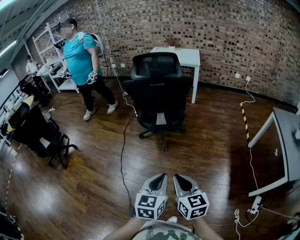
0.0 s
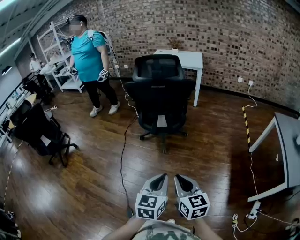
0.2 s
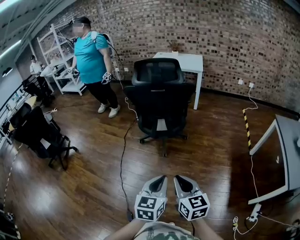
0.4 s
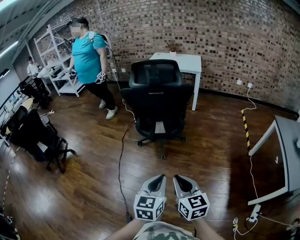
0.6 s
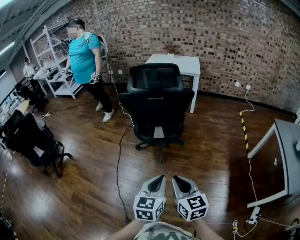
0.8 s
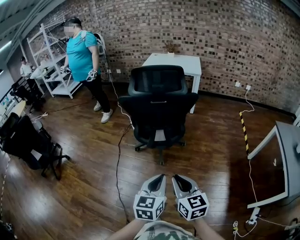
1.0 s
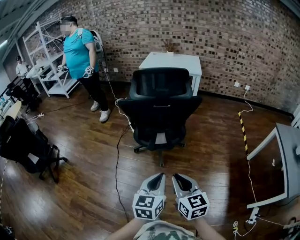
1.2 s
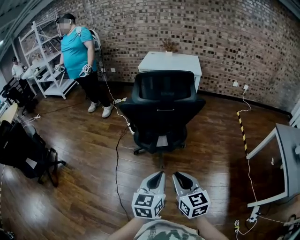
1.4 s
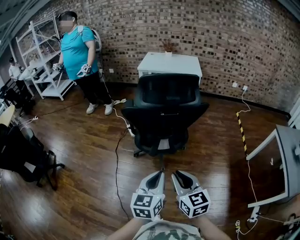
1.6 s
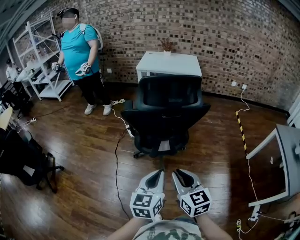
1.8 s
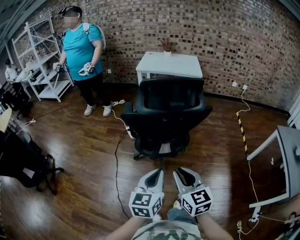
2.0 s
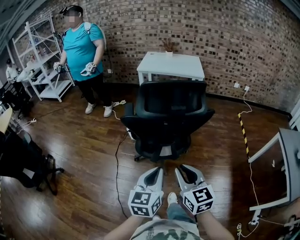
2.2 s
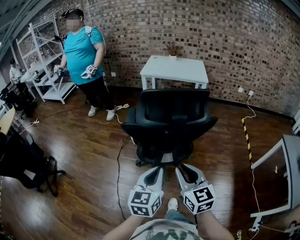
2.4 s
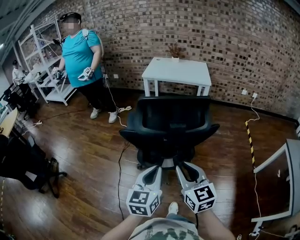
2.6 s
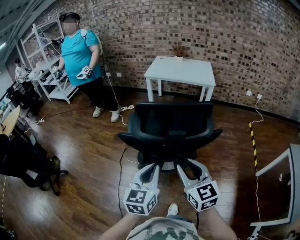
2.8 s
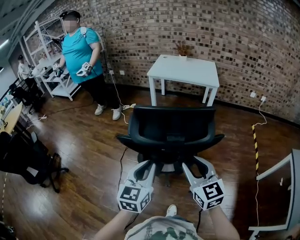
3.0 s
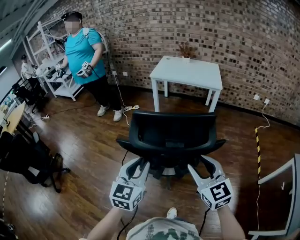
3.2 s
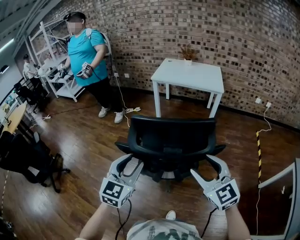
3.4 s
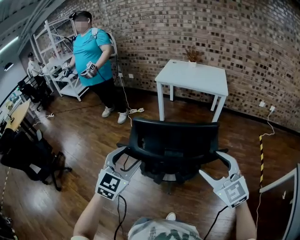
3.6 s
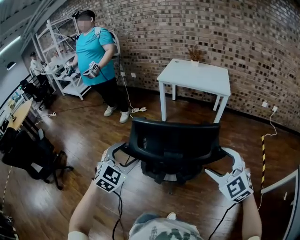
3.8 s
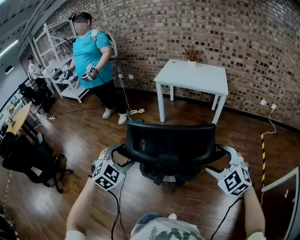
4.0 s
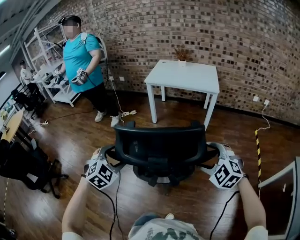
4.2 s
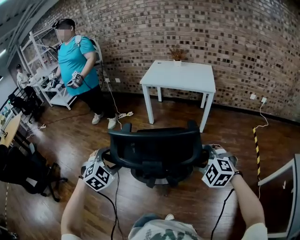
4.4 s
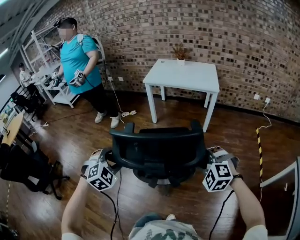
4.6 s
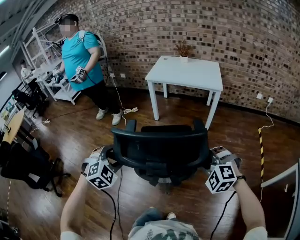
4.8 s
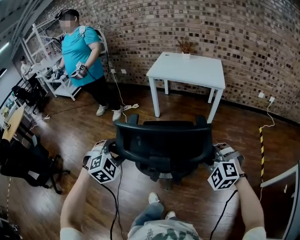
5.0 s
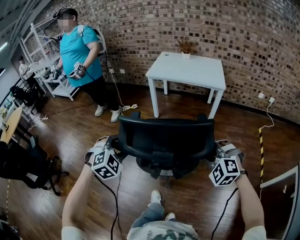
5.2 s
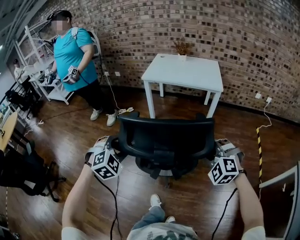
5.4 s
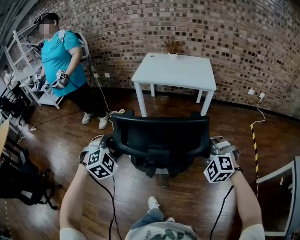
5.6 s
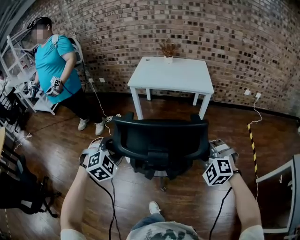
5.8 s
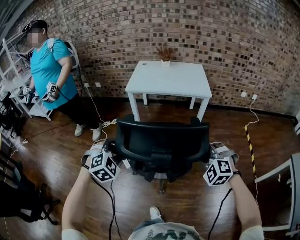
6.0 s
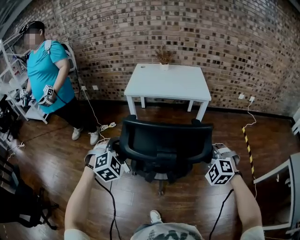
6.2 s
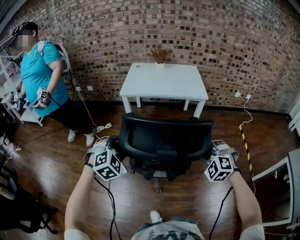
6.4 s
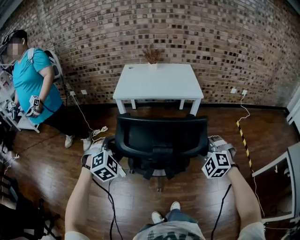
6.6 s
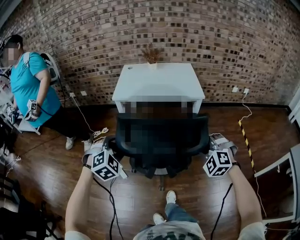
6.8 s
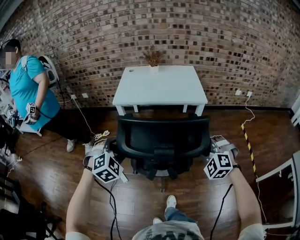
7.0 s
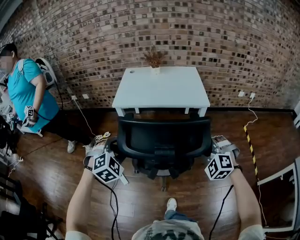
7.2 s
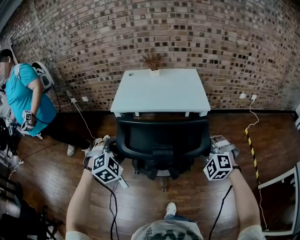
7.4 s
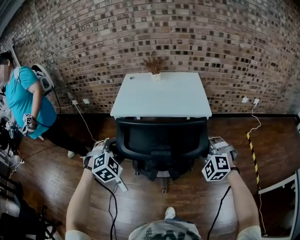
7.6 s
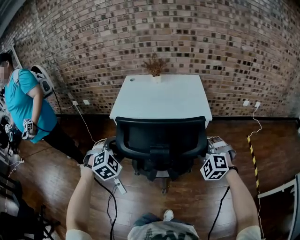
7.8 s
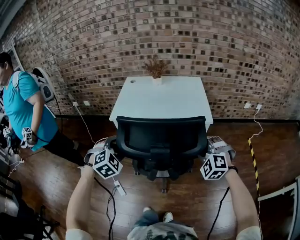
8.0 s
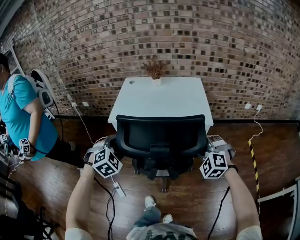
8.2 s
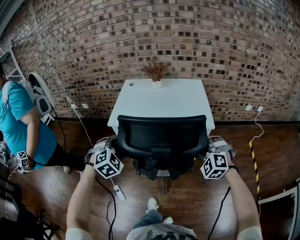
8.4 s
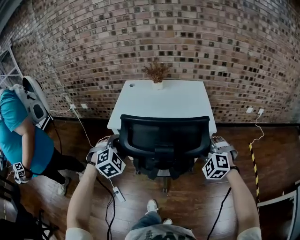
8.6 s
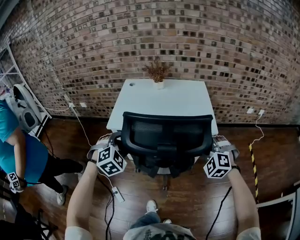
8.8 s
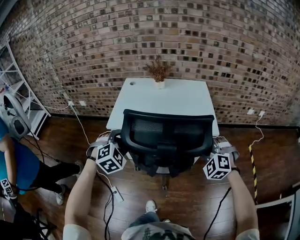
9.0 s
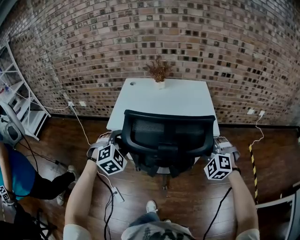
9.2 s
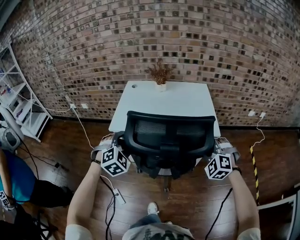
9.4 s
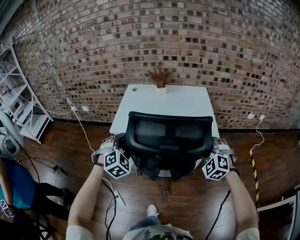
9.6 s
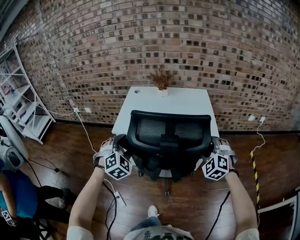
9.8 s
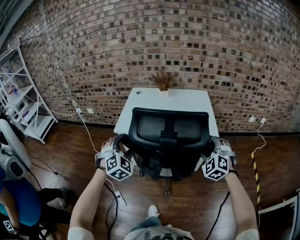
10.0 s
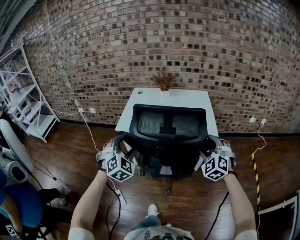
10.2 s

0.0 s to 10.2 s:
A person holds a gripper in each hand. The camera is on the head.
0.0 to 1.4 s: The two grippers go roughly 25 cm forward.
1.4 to 3.0 s: Both grippers travel together forward, roughly 25 cm.
3.0 to 4.4 s: The left gripper is displaced forward and to the left by approximately 15 cm, rotates around the line of its fingers by roughly 50 degrees, clockwise from behind, and opens up. The right gripper travels forward, to the right and downward by about 15 cm, rolls counterclockwise, seen from behind, by some 50 degrees, and opens up.
4.4 to 5.8 s: Both grippers travel together forward, roughly 20 cm. The right gripper closes up.
5.8 to 7.2 s: Both grippers travel together forward, some 20 cm.
7.2 to 8.8 s: The two grippers go roughly 25 cm forward.
8.8 to 10.2 s: The left gripper ends up approximately 5 cm from where it was, while the right gripper changes place by roughly 5 cm, and opens its fingers.

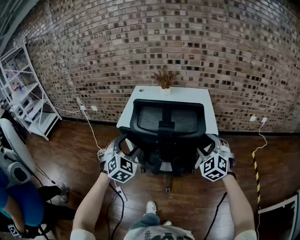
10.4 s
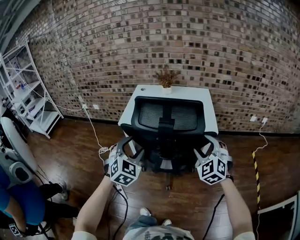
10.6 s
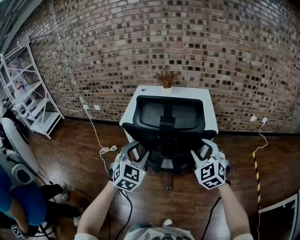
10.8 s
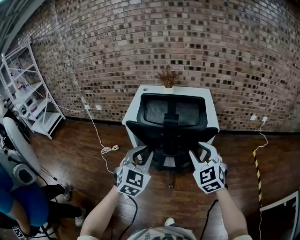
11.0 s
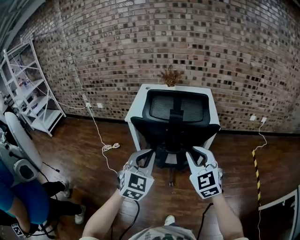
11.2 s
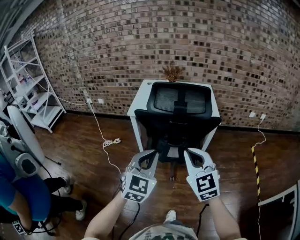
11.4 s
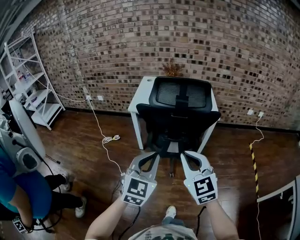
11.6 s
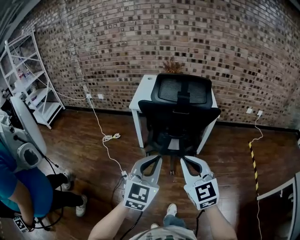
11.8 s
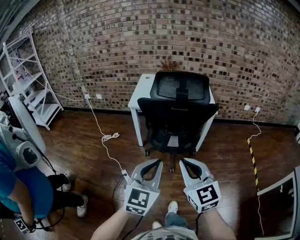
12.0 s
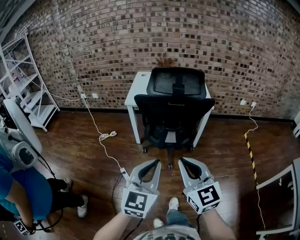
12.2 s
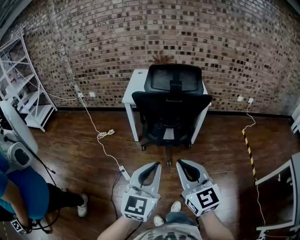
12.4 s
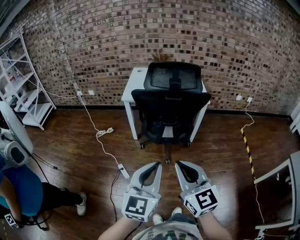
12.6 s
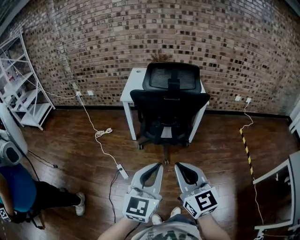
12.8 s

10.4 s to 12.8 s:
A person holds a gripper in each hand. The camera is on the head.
10.4 to 11.6 s: The left gripper is displaced backward by approximately 25 cm, rotates approximately 30 degrees, and closes up, while the right gripper moves backward and to the left, roughly 30 cm, swivels about 40 degrees, and closes.
11.6 to 12.8 s: Both grippers move backward, roughly 15 cm.

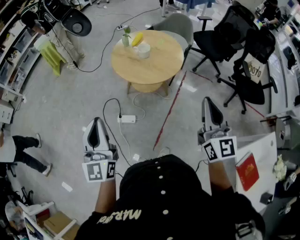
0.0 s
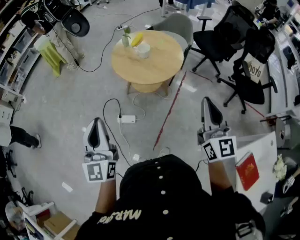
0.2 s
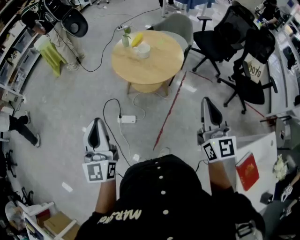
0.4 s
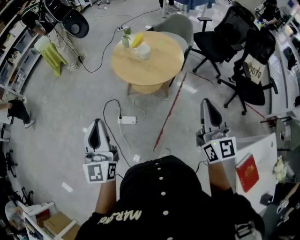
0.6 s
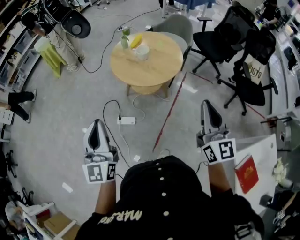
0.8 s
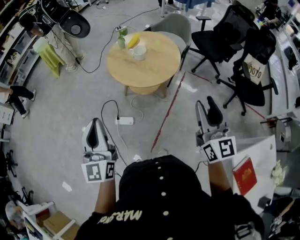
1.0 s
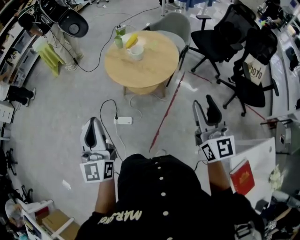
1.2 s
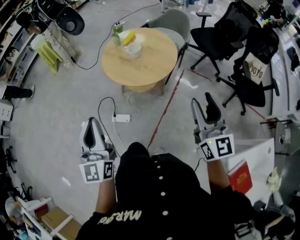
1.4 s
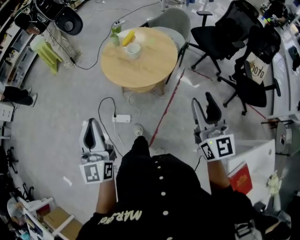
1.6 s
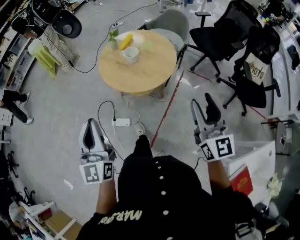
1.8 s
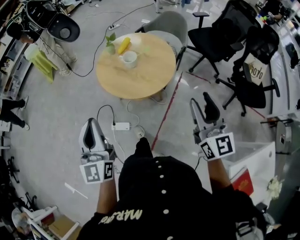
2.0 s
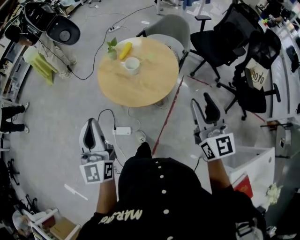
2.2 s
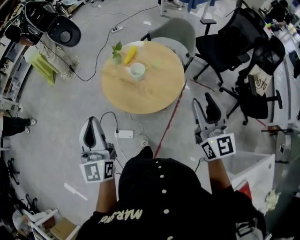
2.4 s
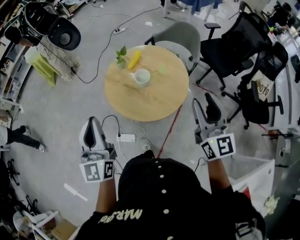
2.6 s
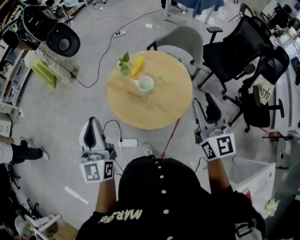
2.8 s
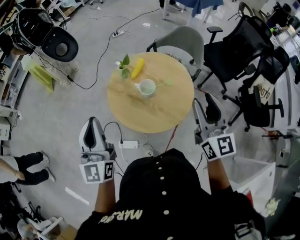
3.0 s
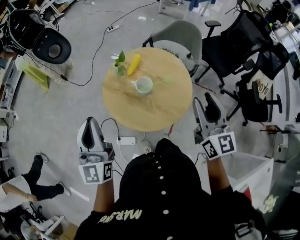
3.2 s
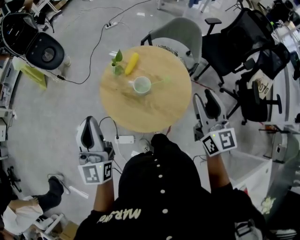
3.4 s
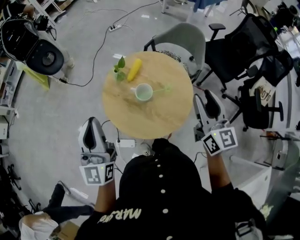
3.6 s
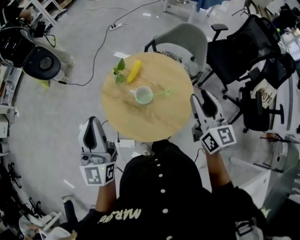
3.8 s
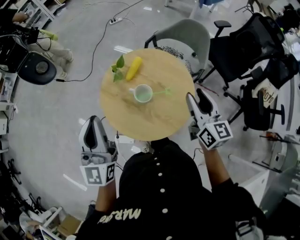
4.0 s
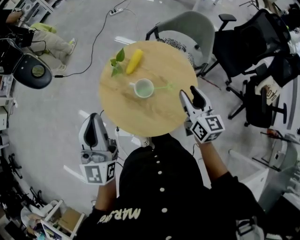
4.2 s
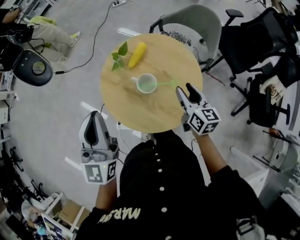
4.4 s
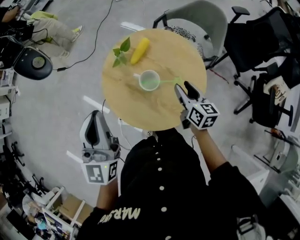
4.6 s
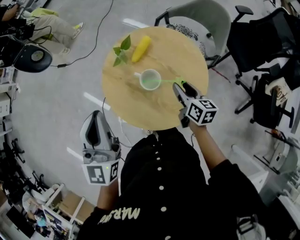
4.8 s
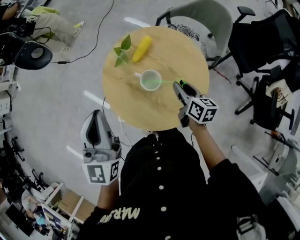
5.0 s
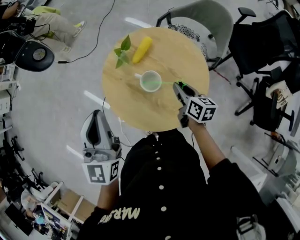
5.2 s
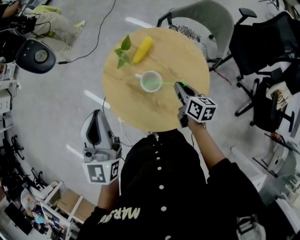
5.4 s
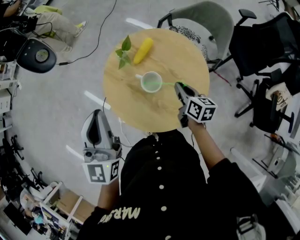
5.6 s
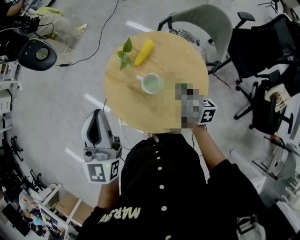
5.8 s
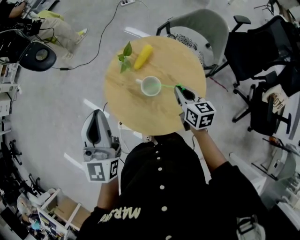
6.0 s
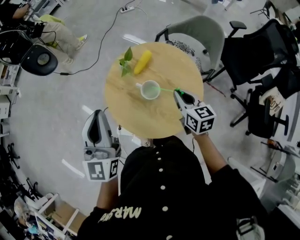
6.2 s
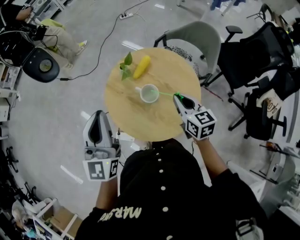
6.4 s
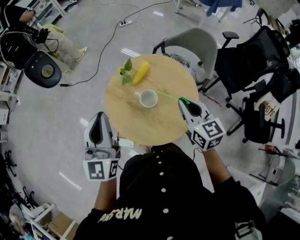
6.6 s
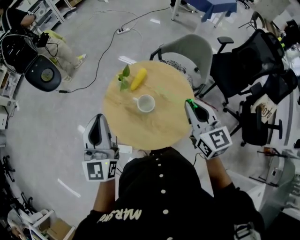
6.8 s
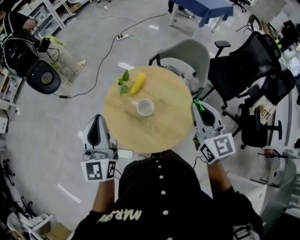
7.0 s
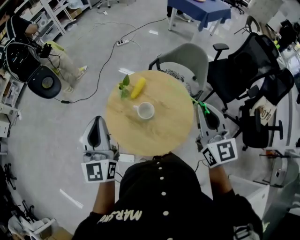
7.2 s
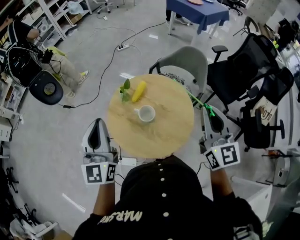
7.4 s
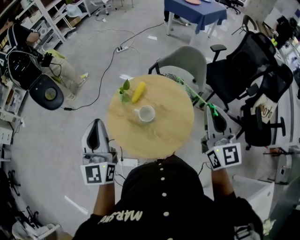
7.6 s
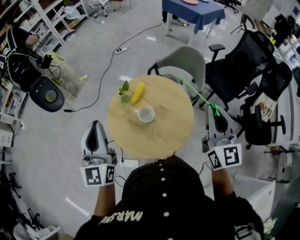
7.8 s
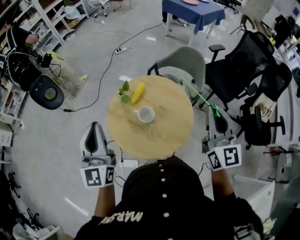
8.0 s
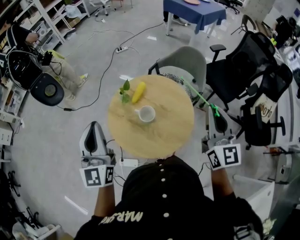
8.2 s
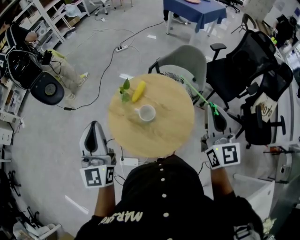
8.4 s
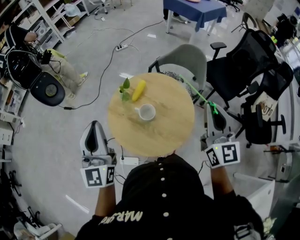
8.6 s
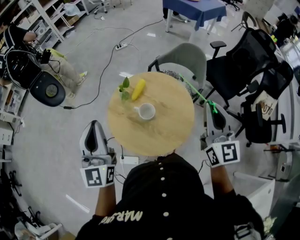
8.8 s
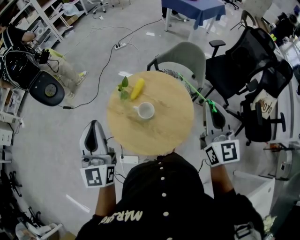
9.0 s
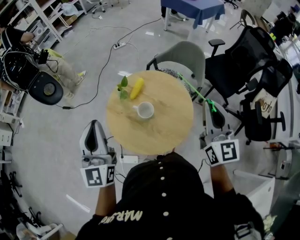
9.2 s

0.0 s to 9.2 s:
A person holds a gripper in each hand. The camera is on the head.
0.0 to 1.6 s: Both grippers move to the right and forward, roughly 10 cm. The right gripper opens its fingers.
1.6 to 3.0 s: Both grippers move forward, approximately 40 cm.
3.0 to 4.6 s: The left gripper goes roughly 15 cm forward and downward. Meanwhile the right gripper shifts some 35 cm downward and forward, and turns by roughly 40 degrees.
4.6 to 6.2 s: The right gripper goes some 5 cm upward, and closes.
6.2 to 7.6 s: The right gripper heads upward and backward, covering about 30 cm, and tilts its fingers some 30 degrees upward. The left gripper shifts roughly 10 cm upward.
7.6 to 9.2 s: The grippers make only small movements.

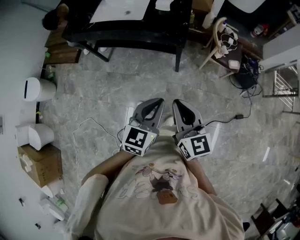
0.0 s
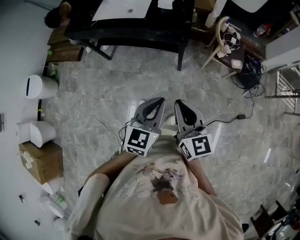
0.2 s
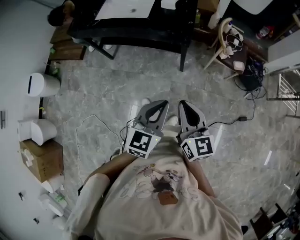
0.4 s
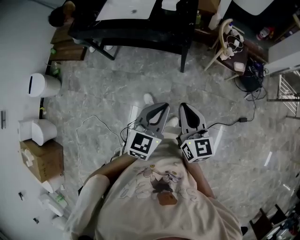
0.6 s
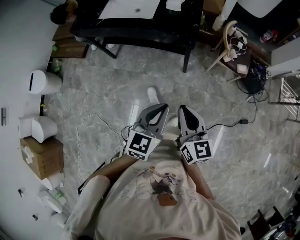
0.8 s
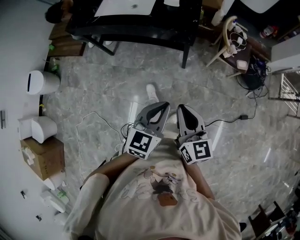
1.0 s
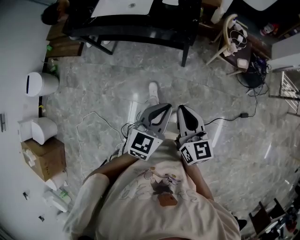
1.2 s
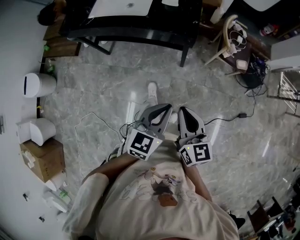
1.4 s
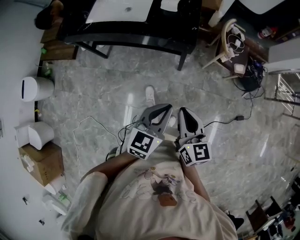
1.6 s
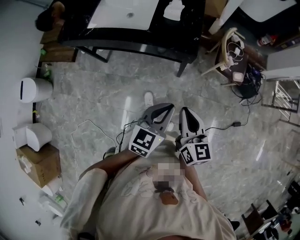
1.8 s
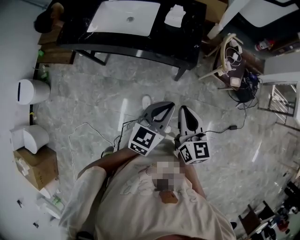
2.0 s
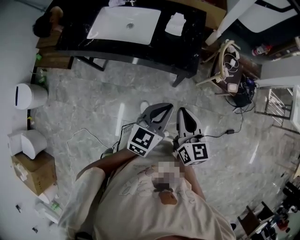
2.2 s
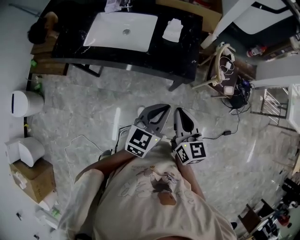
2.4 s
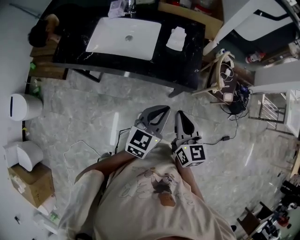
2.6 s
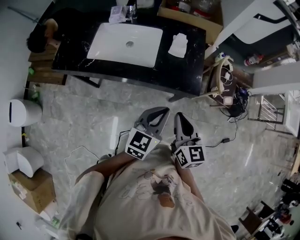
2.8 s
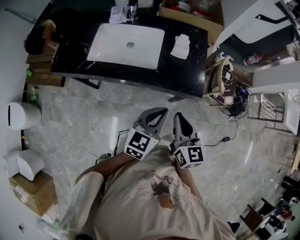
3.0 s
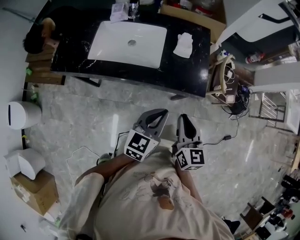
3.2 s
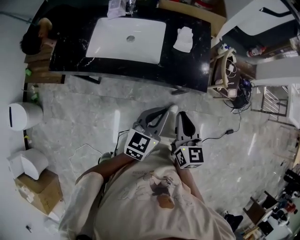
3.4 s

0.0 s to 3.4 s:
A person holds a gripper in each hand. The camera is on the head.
0.0 to 1.6 s: The right gripper shifts about 10 cm forward and downward; the left gripper travels forward by approximately 10 cm.
1.6 to 3.4 s: Both grippers move forward and to the left, roughly 30 cm.
